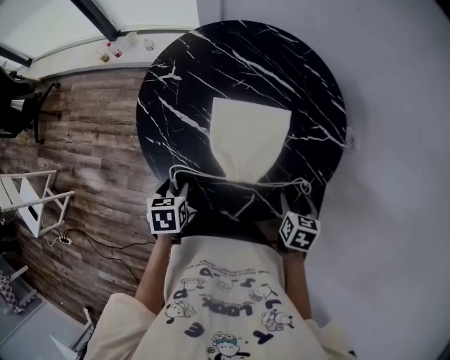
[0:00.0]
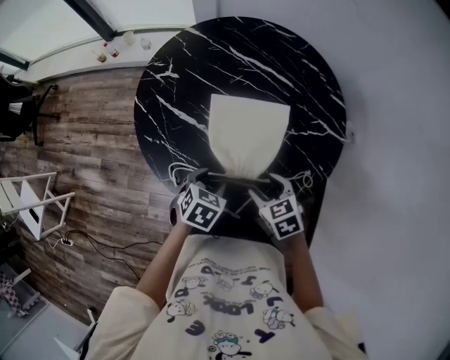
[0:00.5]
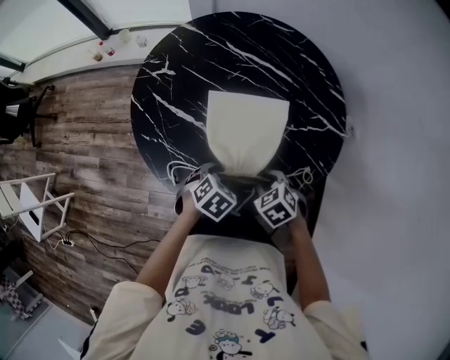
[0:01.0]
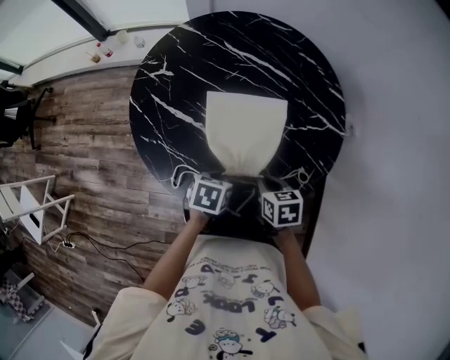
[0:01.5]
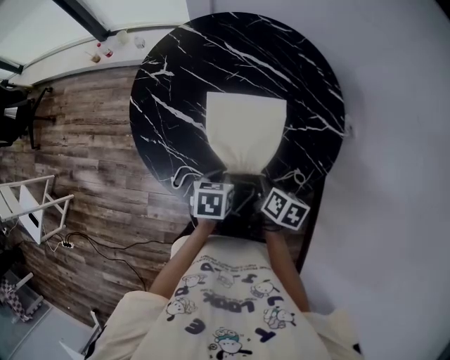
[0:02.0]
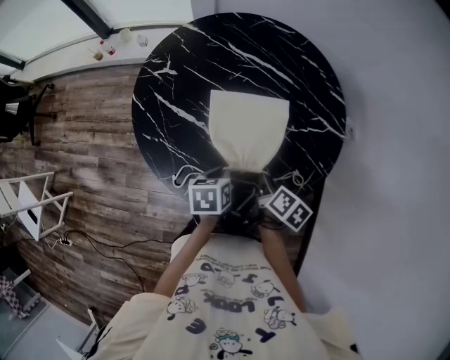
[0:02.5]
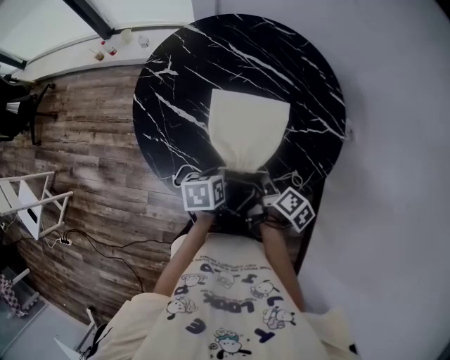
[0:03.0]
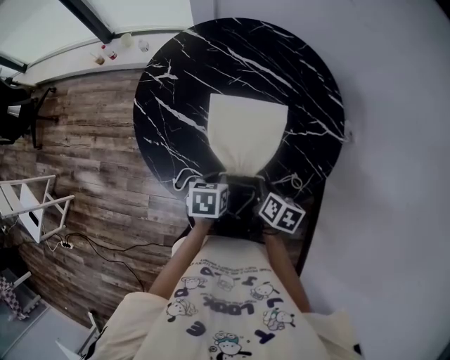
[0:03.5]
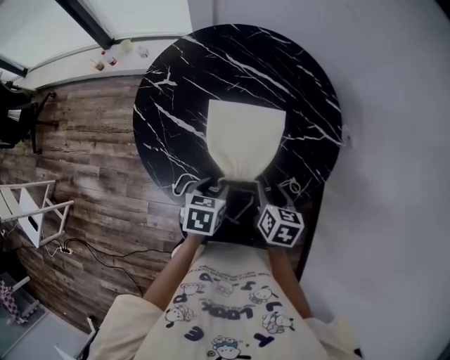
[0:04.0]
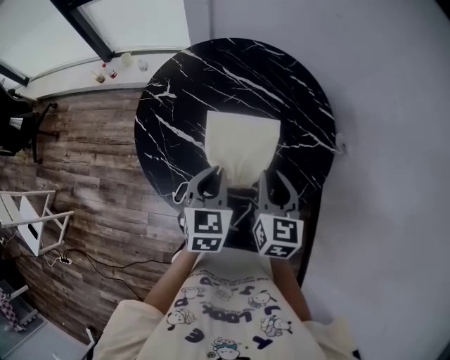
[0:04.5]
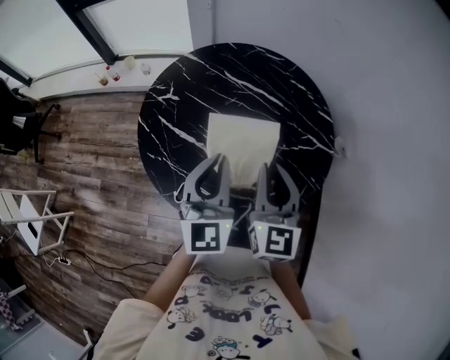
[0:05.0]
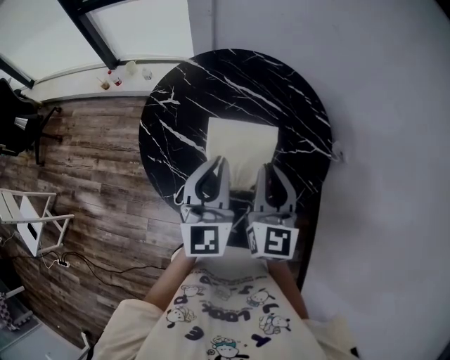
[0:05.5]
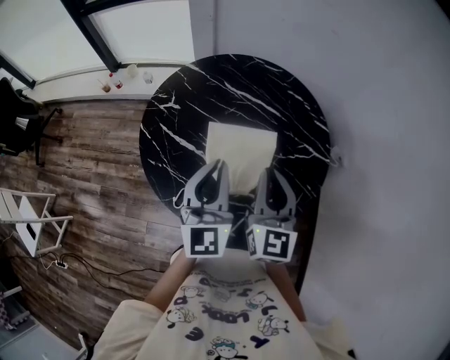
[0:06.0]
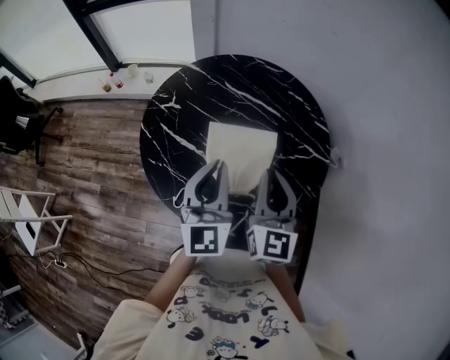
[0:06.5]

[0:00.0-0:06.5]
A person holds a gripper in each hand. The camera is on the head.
0:00.0 to 0:02.0: The right gripper travels to the left by some 10 cm, changes its angle by approximately 30 degrees, and closes, while the left gripper shifts some 15 cm to the right, and closes.
0:02.0 to 0:04.5: Both grippers travel together upward, roughly 15 cm. The right gripper changes its angle by some 40 degrees, and opens, then closes once more, while the left gripper turns by some 40 degrees, and opens, then closes again.
0:04.5 to 0:06.5: The two grippers go some 10 cm upward. The left gripper swivels about 30 degrees. Meanwhile the right gripper swivels some 20 degrees.

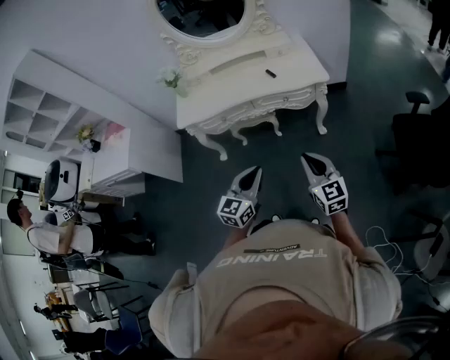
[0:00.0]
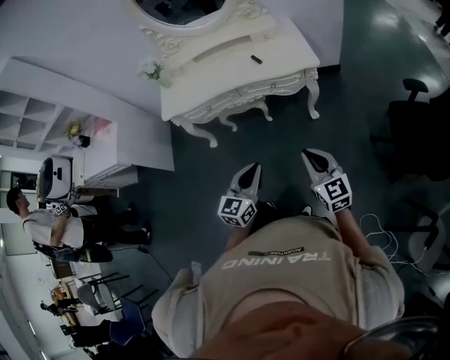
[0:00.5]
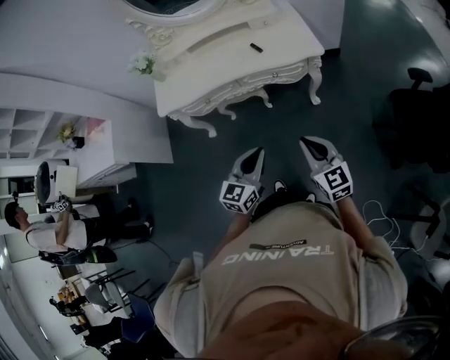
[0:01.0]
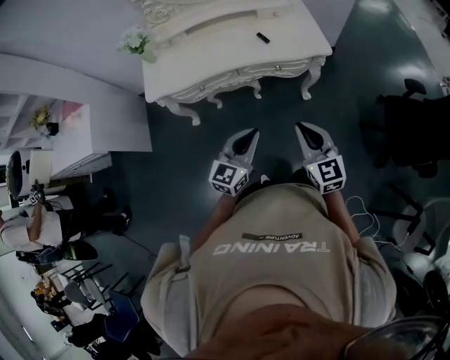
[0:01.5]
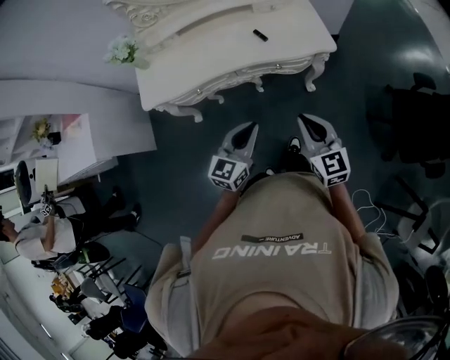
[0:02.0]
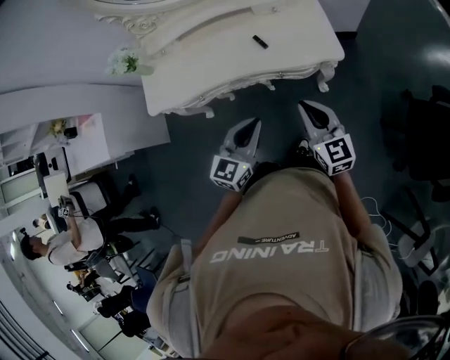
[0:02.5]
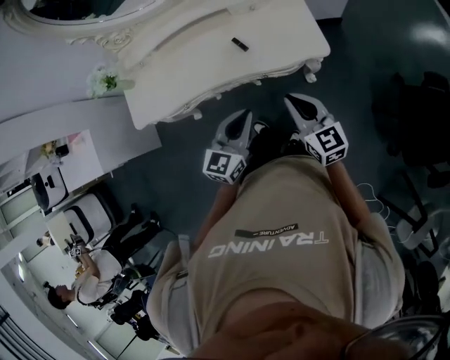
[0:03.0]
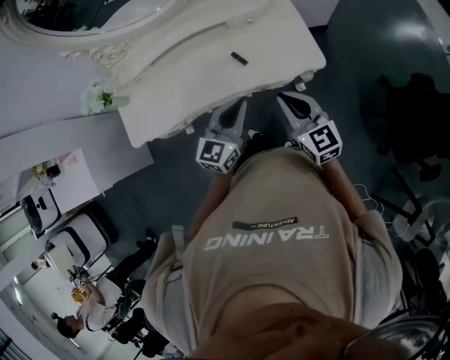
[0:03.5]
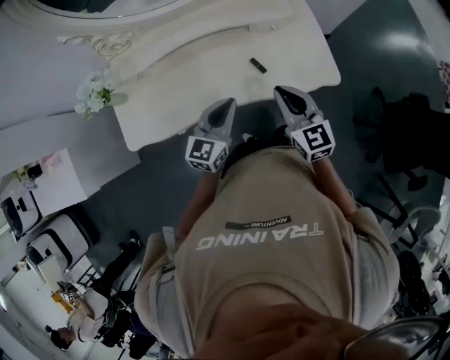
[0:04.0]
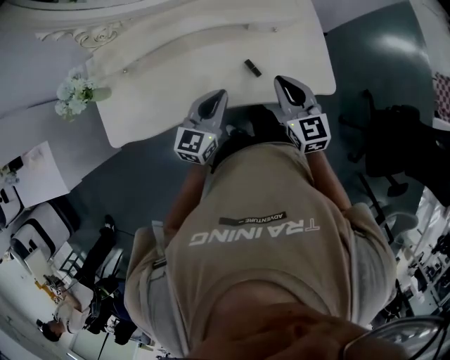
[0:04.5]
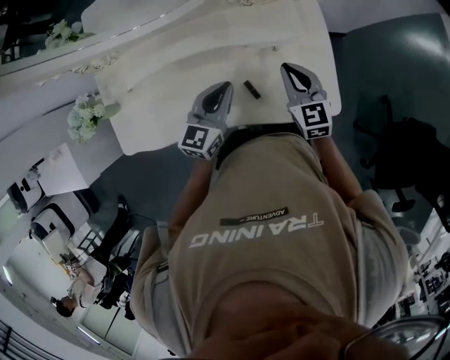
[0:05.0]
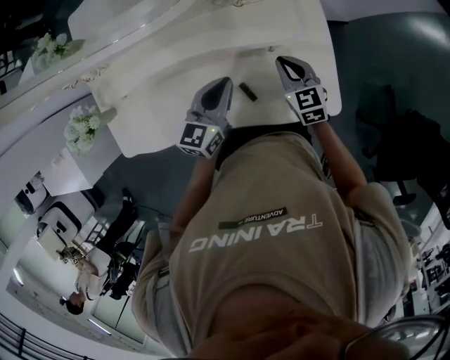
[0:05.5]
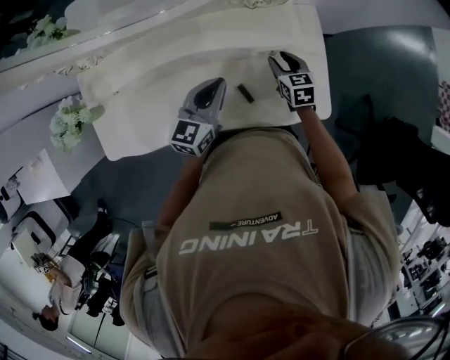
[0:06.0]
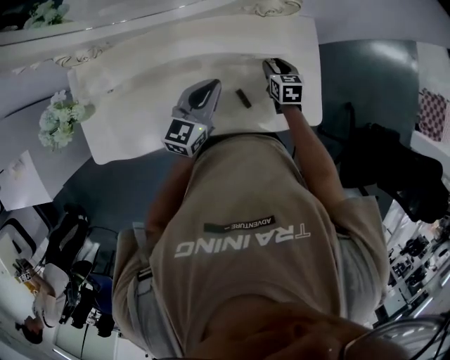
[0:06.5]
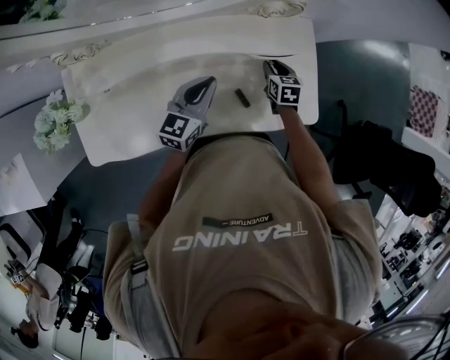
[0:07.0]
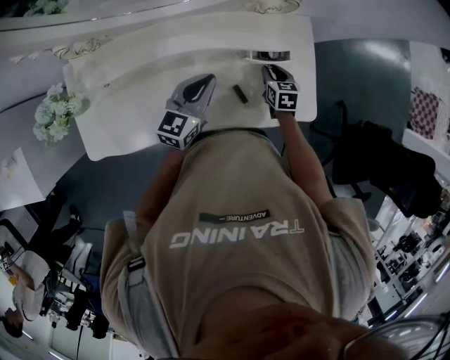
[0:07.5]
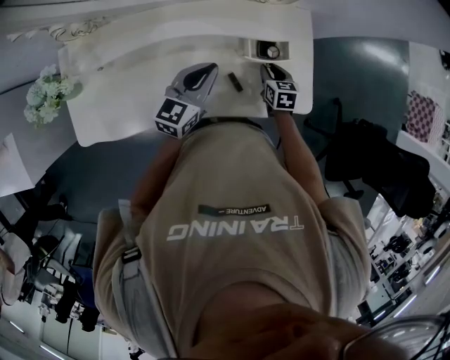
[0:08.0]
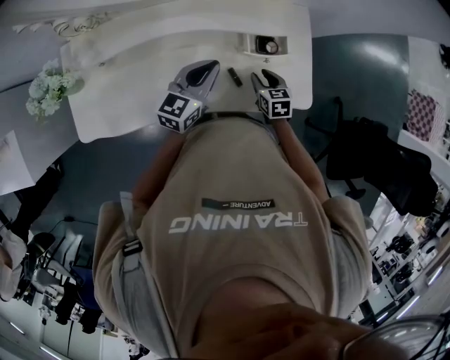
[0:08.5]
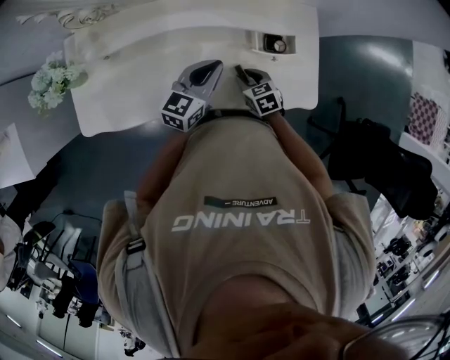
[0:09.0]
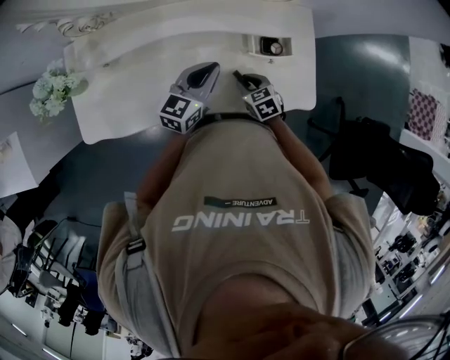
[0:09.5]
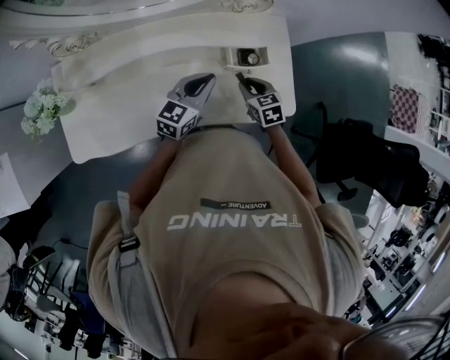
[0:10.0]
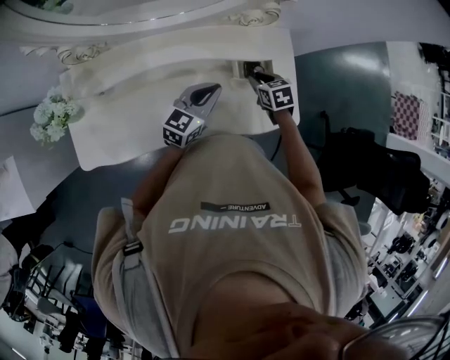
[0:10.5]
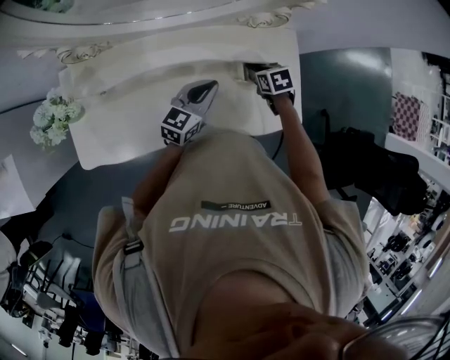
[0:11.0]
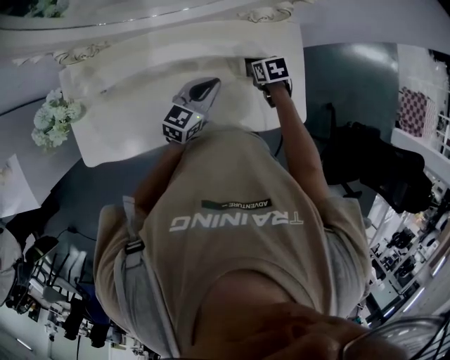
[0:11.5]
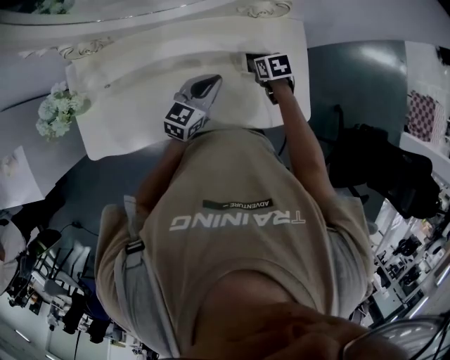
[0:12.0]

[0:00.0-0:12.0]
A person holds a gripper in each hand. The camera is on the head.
0:00.0 to 0:02.0: The grippers both shift forward by some 30 cm.
0:02.0 to 0:04.0: Both grippers travel together forward, some 35 cm.
0:04.0 to 0:06.0: The left gripper moves forward, approximately 25 cm, while the right gripper travels forward and downward by about 35 cm, changes its angle by about 30 degrees, and opens its fingers.
0:06.0 to 0:08.0: The right gripper goes approximately 5 cm backward.
0:08.0 to 0:10.0: The right gripper moves upward, some 5 cm.
0:10.0 to 0:12.0: The right gripper moves forward, about 10 cm, and turns by about 20 degrees.

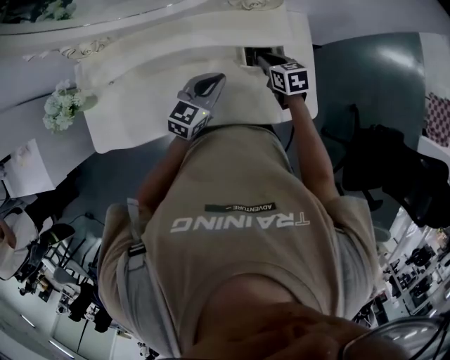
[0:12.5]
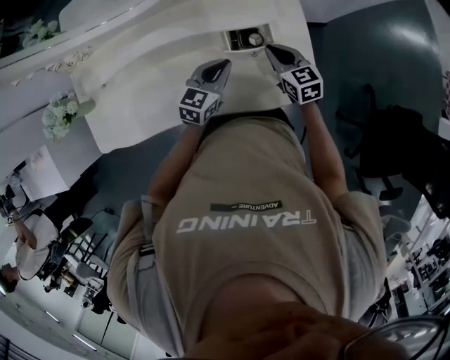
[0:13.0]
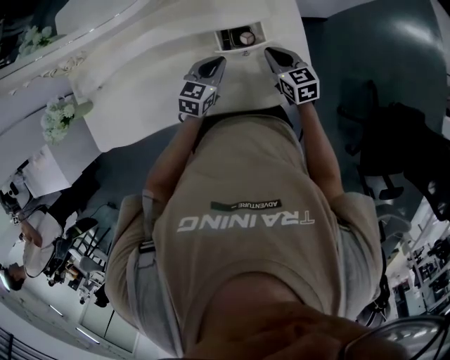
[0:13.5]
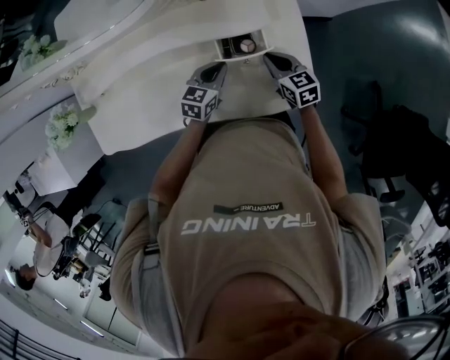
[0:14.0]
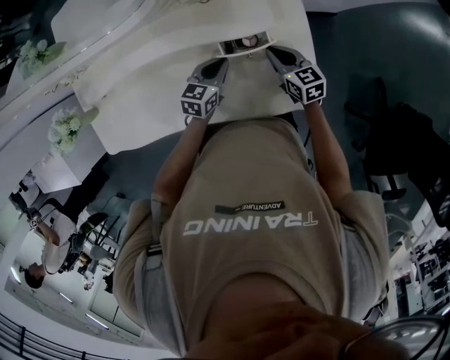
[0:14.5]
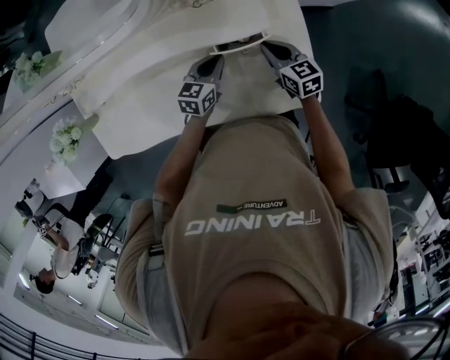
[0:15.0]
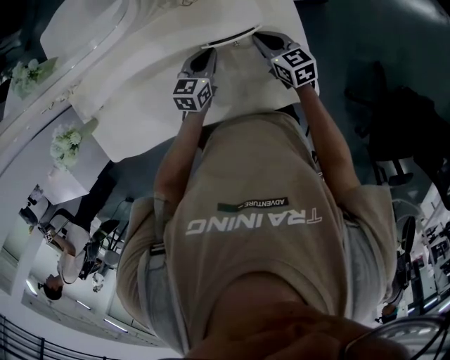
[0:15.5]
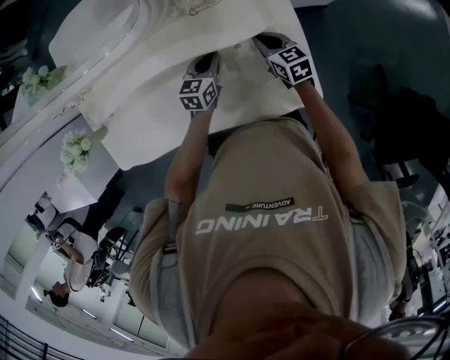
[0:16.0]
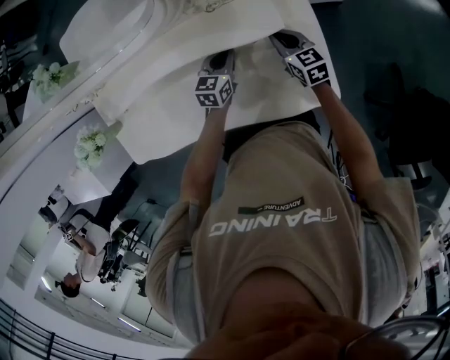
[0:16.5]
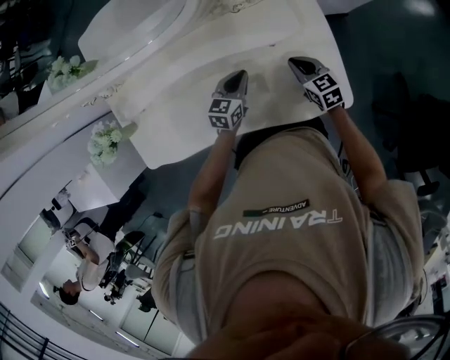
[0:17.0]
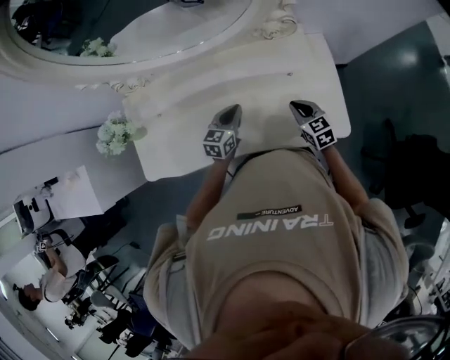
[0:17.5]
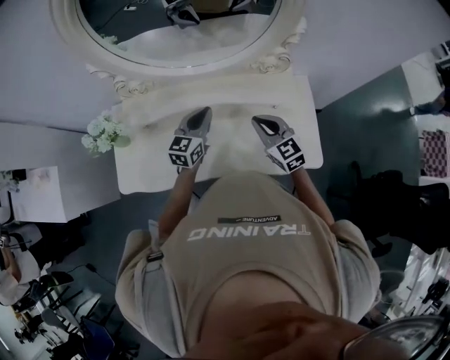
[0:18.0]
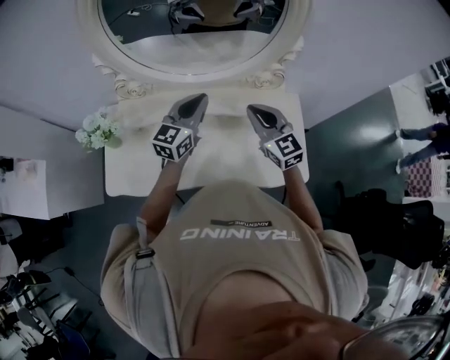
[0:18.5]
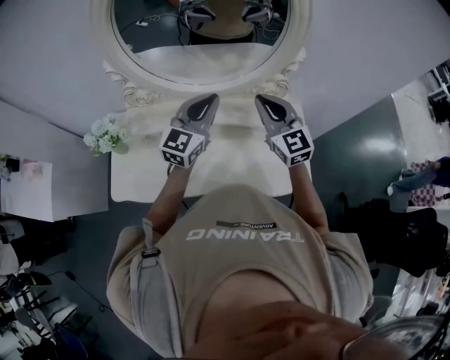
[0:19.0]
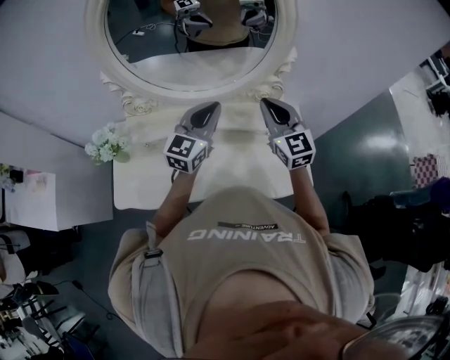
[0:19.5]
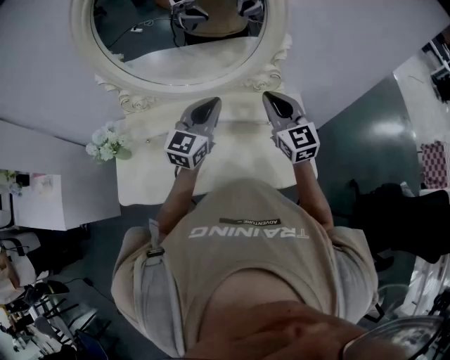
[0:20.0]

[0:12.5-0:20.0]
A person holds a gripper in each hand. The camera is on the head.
0:12.5 to 0:14.5: The right gripper travels to the right by some 10 cm; the left gripper shifts some 20 cm downward, to the right and forward.
0:14.5 to 0:16.5: The two grippers go roughly 5 cm forward.
0:16.5 to 0:18.0: The grippers both shift to the left, upward and backward by approximately 35 cm. The right gripper changes its angle by some 30 degrees; the left gripper changes its angle by some 20 degrees.
0:18.0 to 0:20.0: Both grippers travel together upward, about 15 cm. The right gripper changes its angle by approximately 20 degrees.

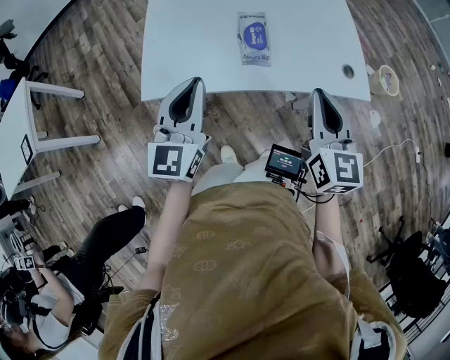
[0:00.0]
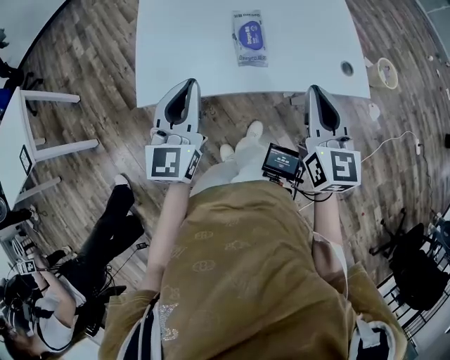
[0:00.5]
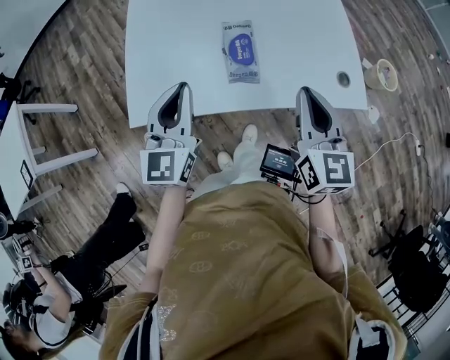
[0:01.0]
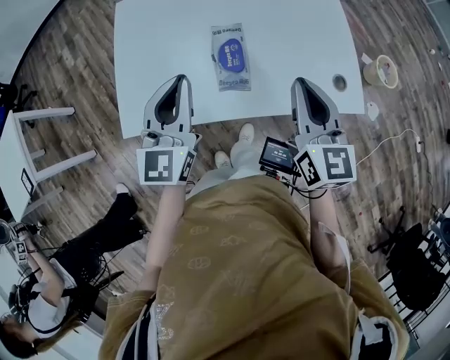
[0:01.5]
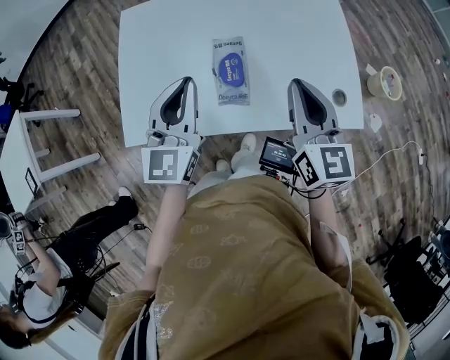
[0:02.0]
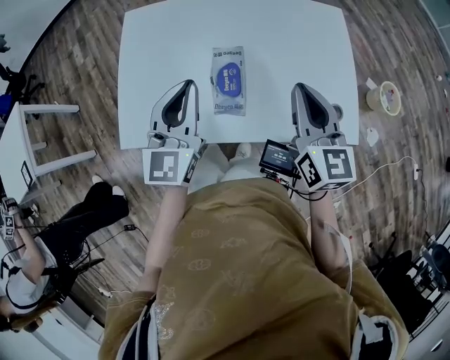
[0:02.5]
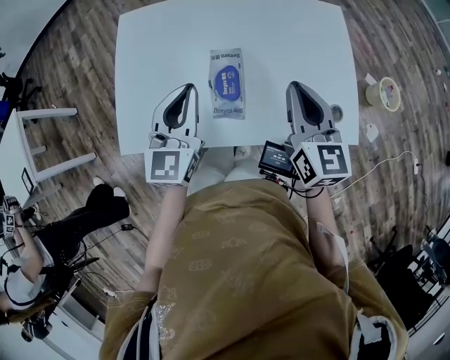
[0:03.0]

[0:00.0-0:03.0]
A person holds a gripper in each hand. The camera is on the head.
0:00.0 to 0:01.5: The grippers both shift forward by about 15 cm.
0:01.5 to 0:03.0: Both grippers move forward, about 5 cm.
